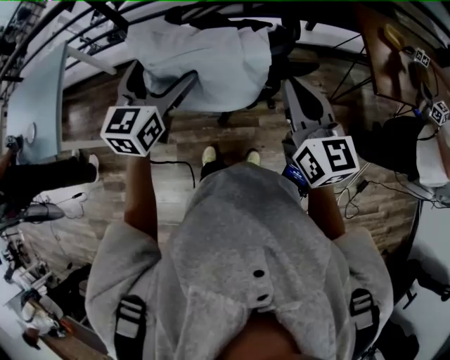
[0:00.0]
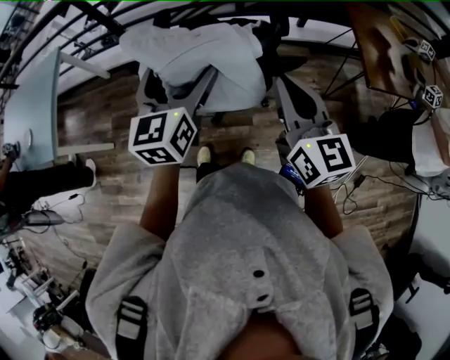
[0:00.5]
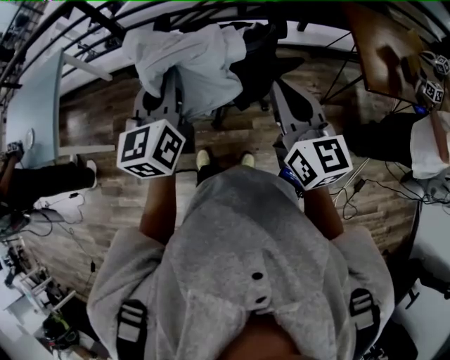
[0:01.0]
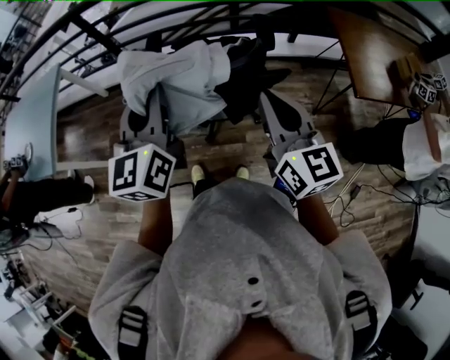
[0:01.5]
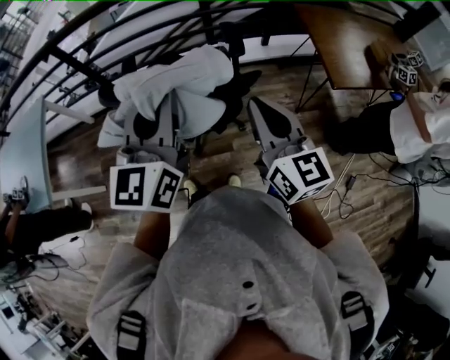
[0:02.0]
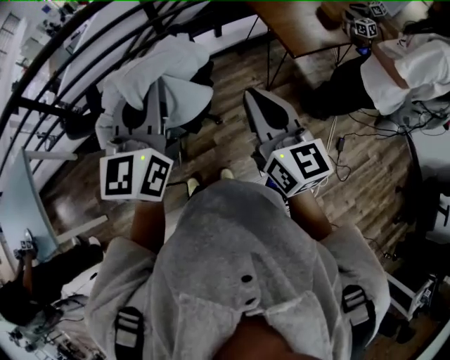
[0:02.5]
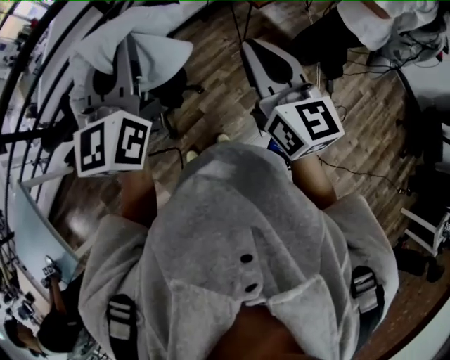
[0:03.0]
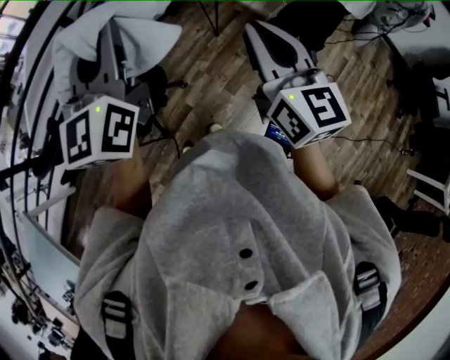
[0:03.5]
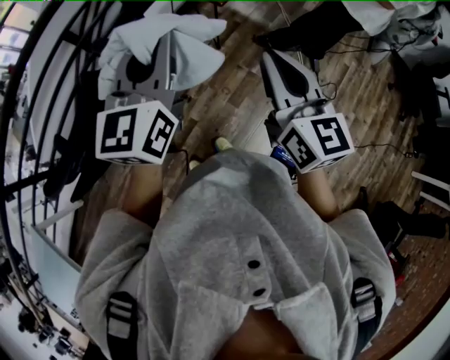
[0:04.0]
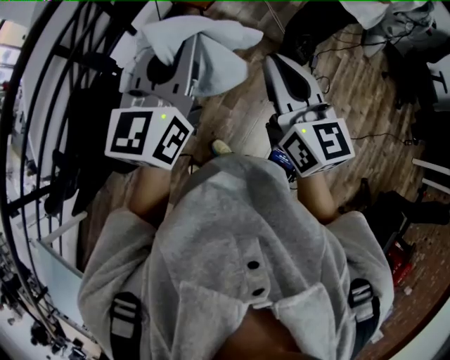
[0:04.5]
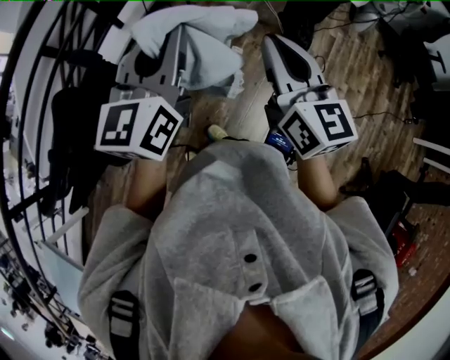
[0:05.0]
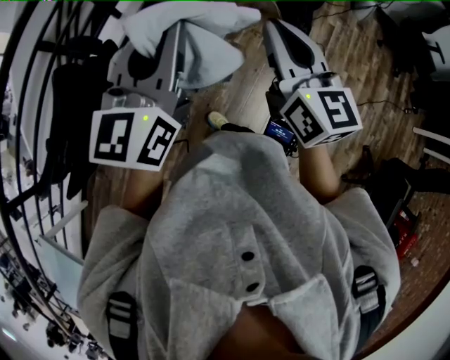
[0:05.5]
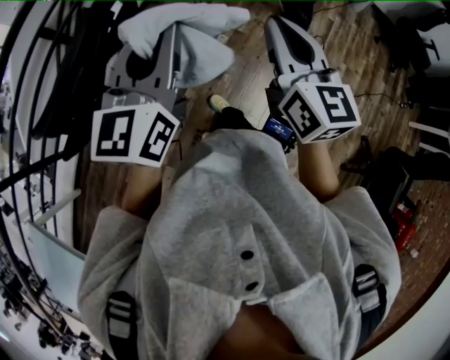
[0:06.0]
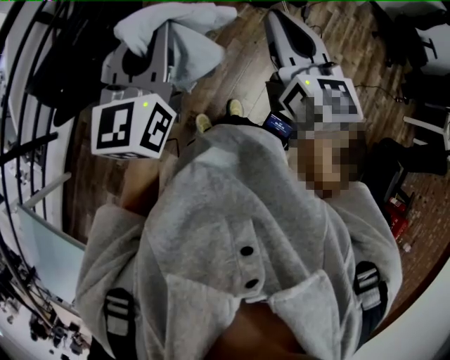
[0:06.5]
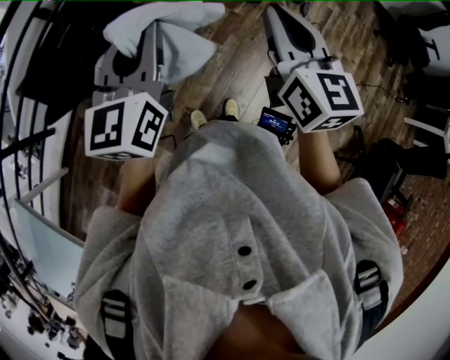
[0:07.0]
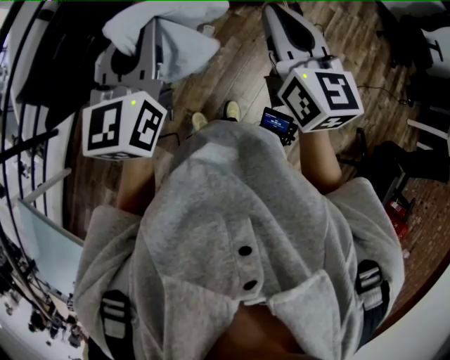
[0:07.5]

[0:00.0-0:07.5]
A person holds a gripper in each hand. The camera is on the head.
0:00.0 to 0:02.0: The left gripper moves to the right and upward, about 20 cm, and closes. Meanwhile the right gripper goes about 5 cm to the right.
0:02.0 to 0:04.0: The left gripper ends up approximately 30 cm from where it was, and swivels roughly 50 degrees. Meanwhile the right gripper moves roughly 25 cm, and swivels about 50 degrees.
0:04.0 to 0:05.5: The left gripper is displaced to the right and backward by about 10 cm. The right gripper ends up about 5 cm from where it was.
0:05.5 to 0:07.5: The right gripper goes roughly 20 cm backward. The left gripper is displaced backward and to the left by approximately 20 cm.

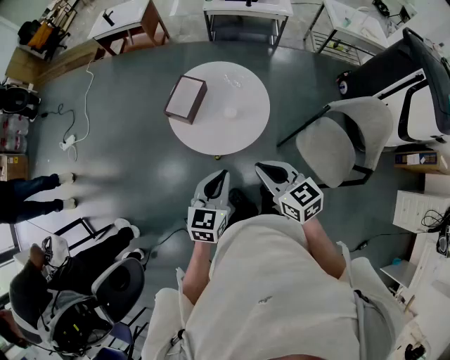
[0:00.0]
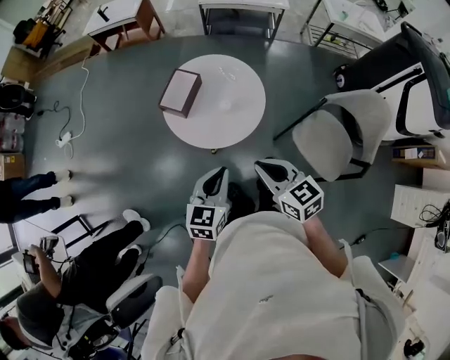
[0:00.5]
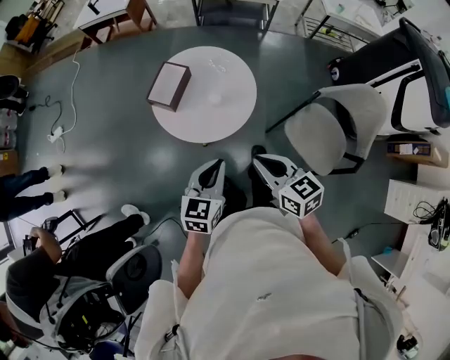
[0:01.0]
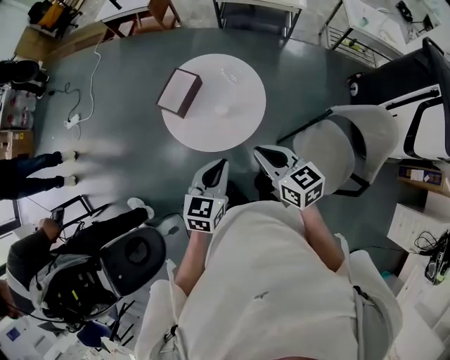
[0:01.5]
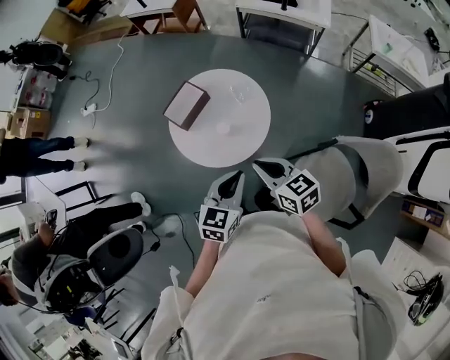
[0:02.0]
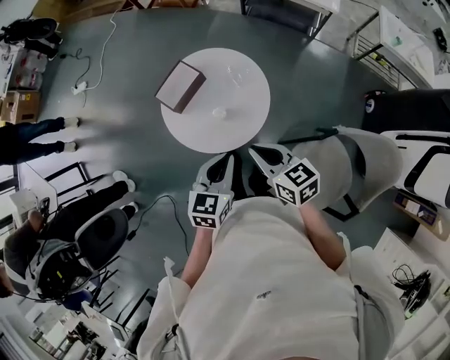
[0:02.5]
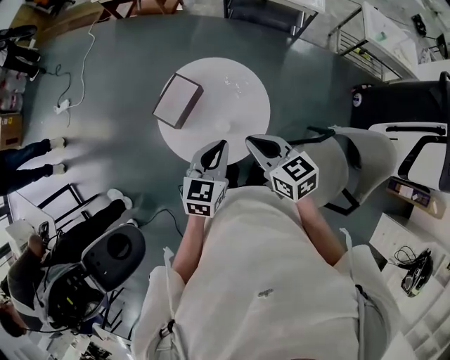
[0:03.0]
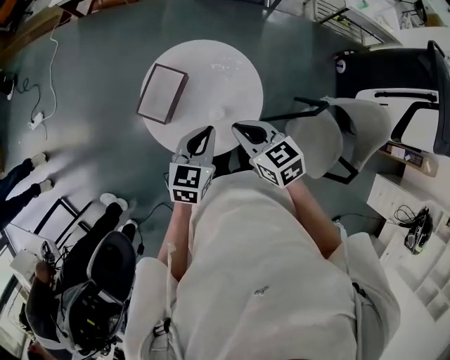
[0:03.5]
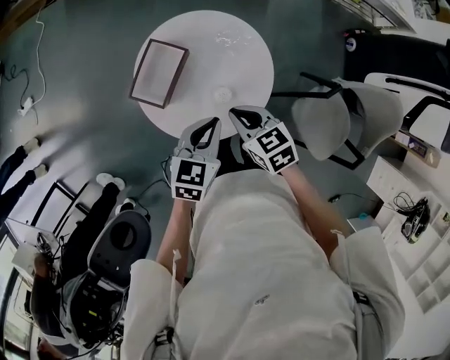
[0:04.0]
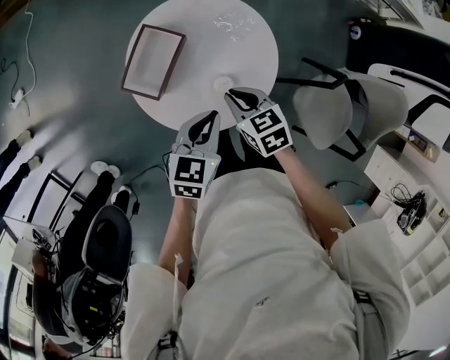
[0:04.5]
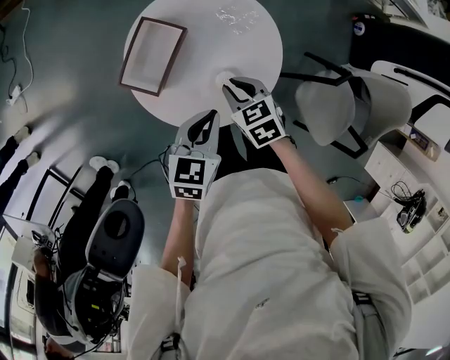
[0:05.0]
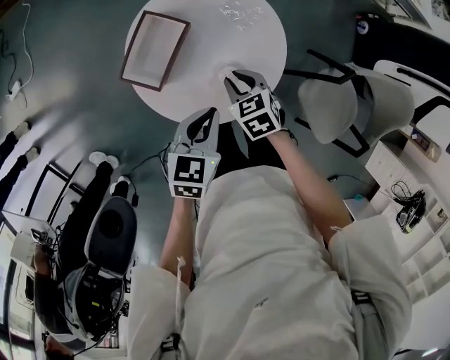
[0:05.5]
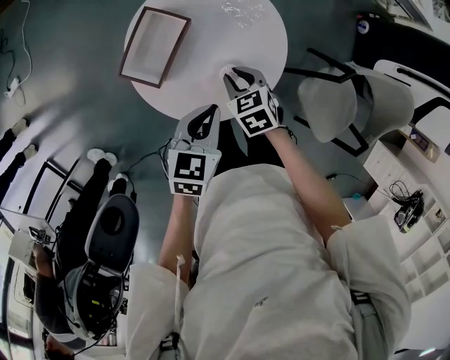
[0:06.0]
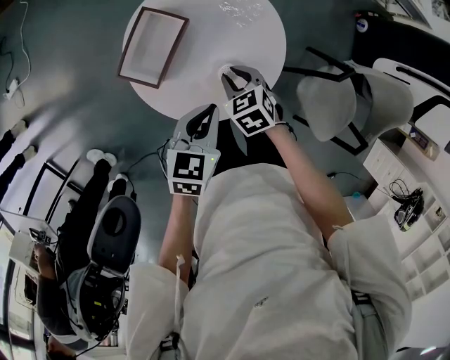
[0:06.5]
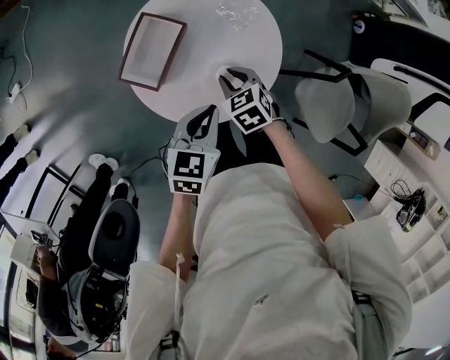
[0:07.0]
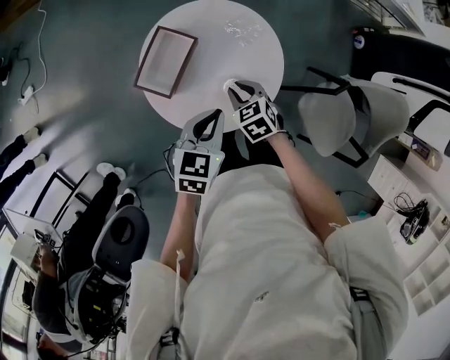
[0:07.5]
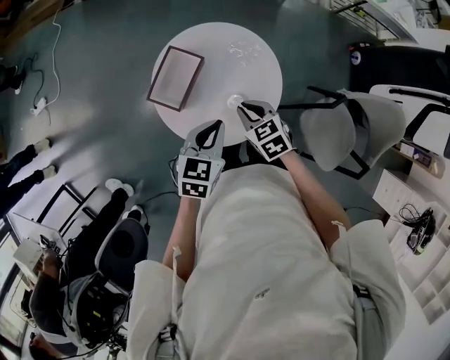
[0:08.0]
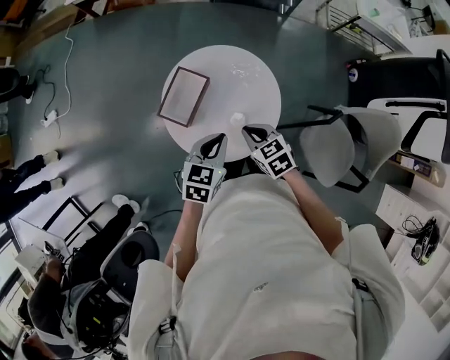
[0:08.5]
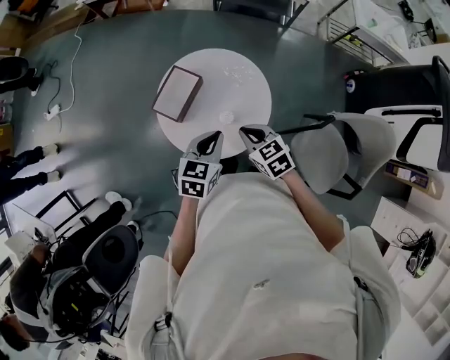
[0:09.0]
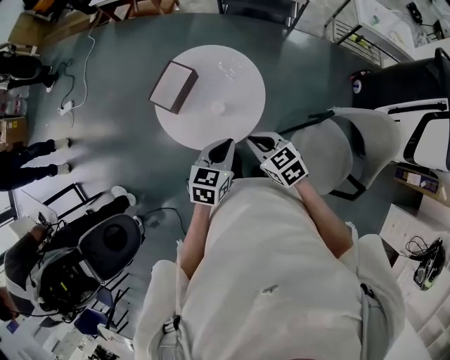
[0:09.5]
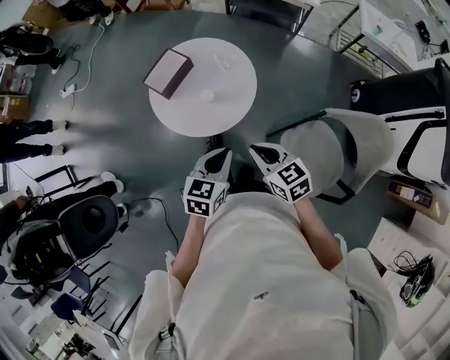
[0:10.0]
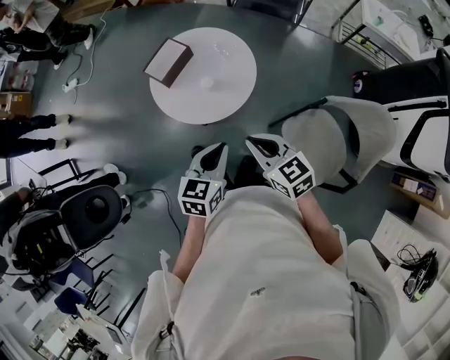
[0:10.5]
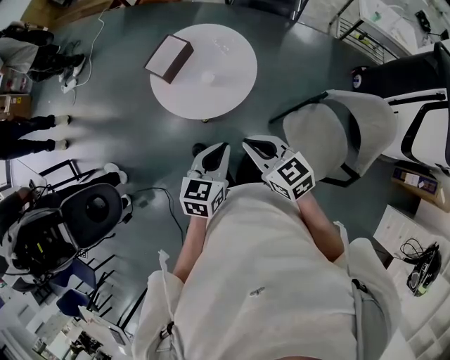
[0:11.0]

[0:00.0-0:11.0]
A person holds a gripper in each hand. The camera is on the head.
0:00.0 to 0:02.0: The right gripper moves to the right and forward, some 15 cm. Meanwhile the left gripper heads to the right, covering about 20 cm.
0:02.0 to 0:03.5: Both grippers move forward and to the left, approximately 20 cm.
0:03.5 to 0:05.5: The left gripper shifts about 10 cm downward; the right gripper is displaced downward by roughly 20 cm, and swivels some 20 degrees.
0:05.5 to 0:07.5: The grippers move only a little.
0:07.5 to 0:09.0: The right gripper shifts approximately 15 cm upward and backward; the left gripper goes about 5 cm upward.
0:09.0 to 0:11.0: The left gripper travels backward by roughly 25 cm. Meanwhile the right gripper moves backward and upward, roughly 25 cm, and rotates some 20 degrees.

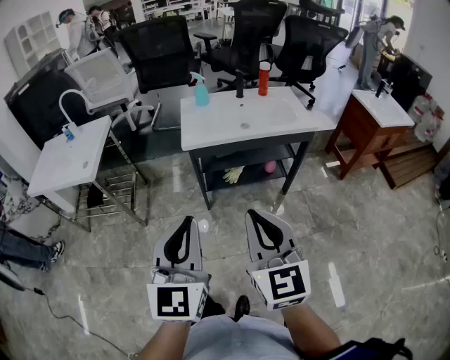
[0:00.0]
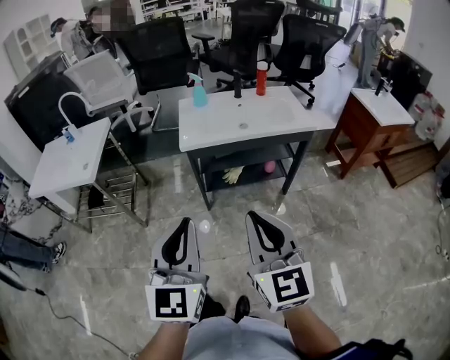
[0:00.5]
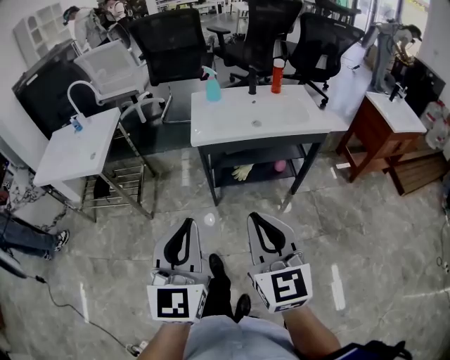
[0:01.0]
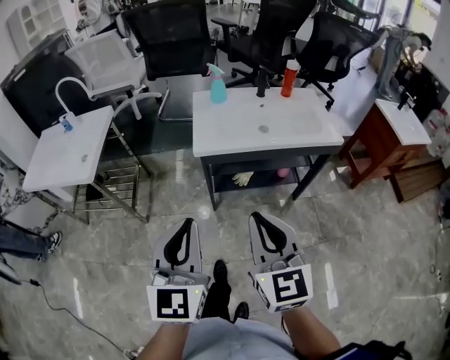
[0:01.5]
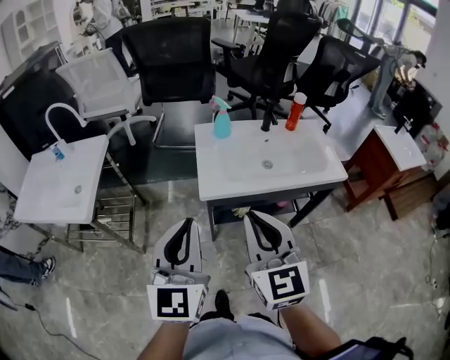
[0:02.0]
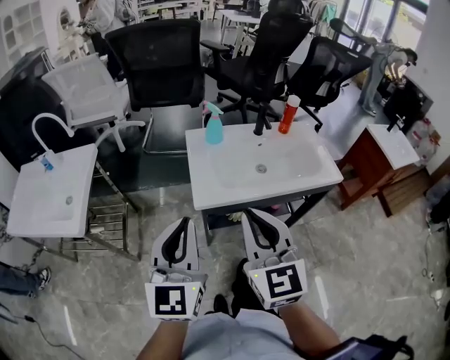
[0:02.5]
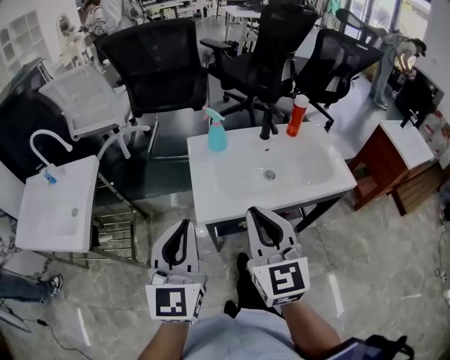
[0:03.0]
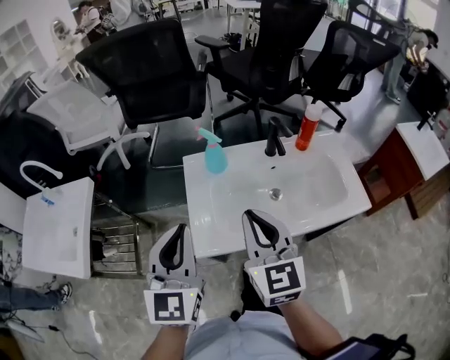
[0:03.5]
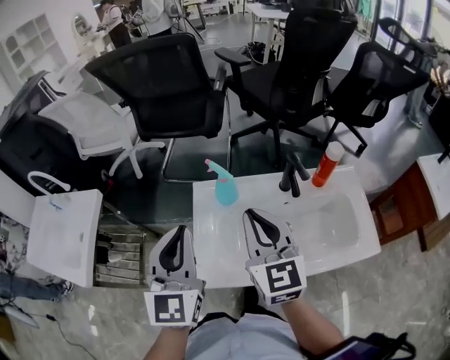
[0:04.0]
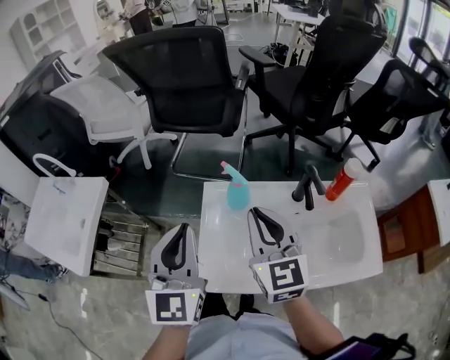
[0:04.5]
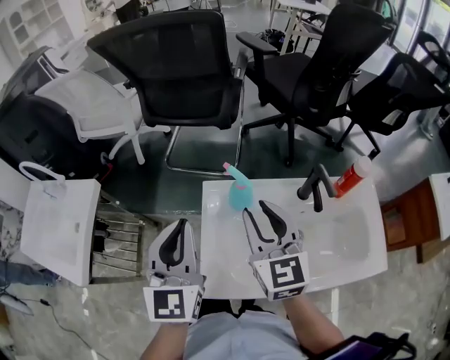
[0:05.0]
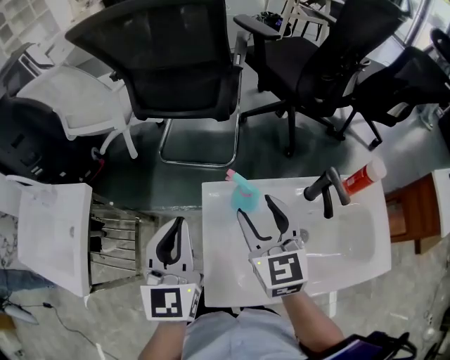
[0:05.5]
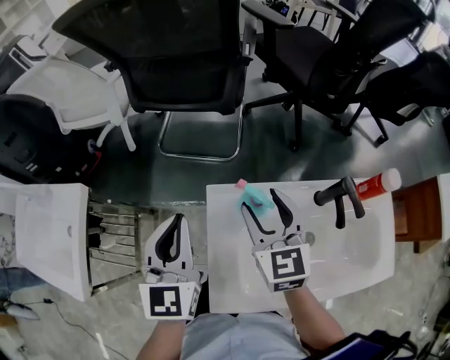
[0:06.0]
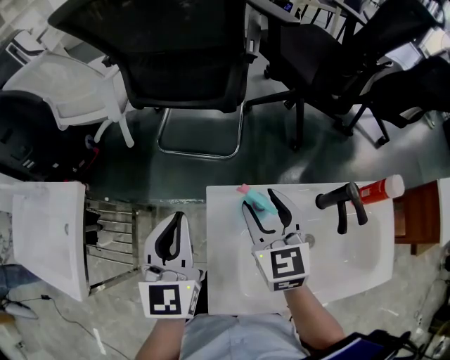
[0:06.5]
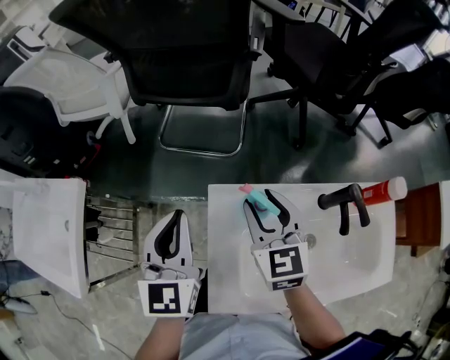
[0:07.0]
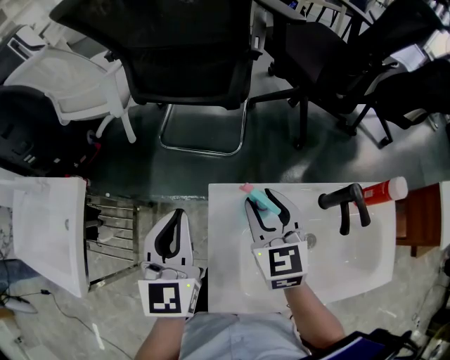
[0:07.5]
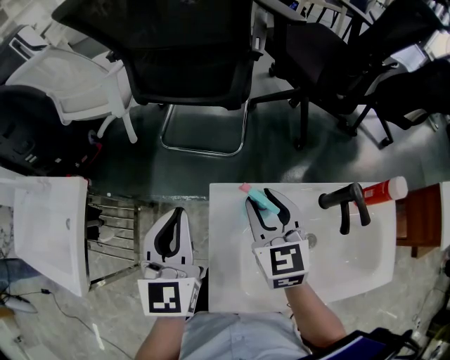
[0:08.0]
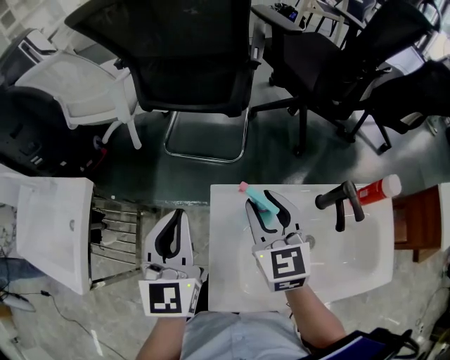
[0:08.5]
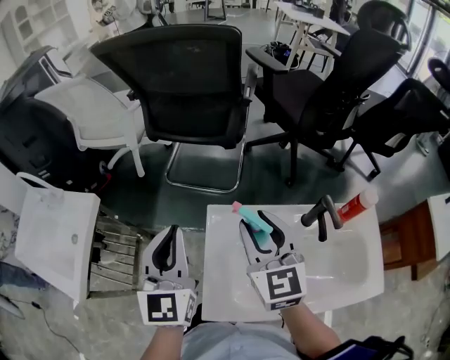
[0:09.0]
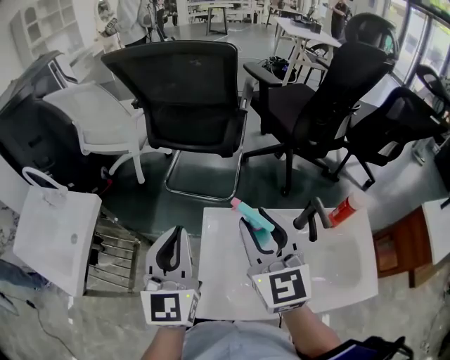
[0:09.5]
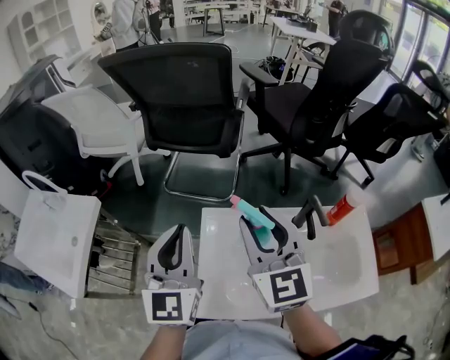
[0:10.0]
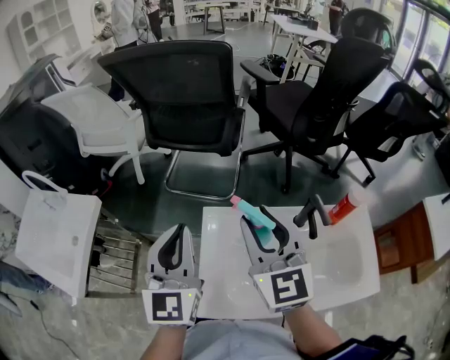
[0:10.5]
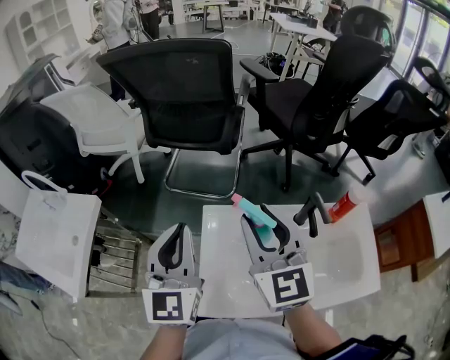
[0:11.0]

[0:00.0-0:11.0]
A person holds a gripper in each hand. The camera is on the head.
0:00.0 to 0:02.0: The two grippers go about 30 cm forward.
0:02.0 to 0:03.5: Both grippers move forward, roughly 25 cm.
0:03.5 to 0:05.5: The two grippers go approximately 25 cm forward. The right gripper opens its fingers.
0:05.5 to 0:07.5: The left gripper moves forward, some 5 cm; the right gripper shifts roughly 10 cm forward and downward.
0:07.5 to 0:09.0: The grippers both shift upward and backward by about 10 cm.
0:09.0 to 0:11.0: The right gripper is displaced upward by about 5 cm. Meanwhile the left gripper changes place by some 5 cm.
